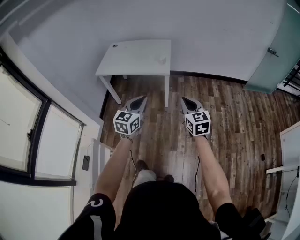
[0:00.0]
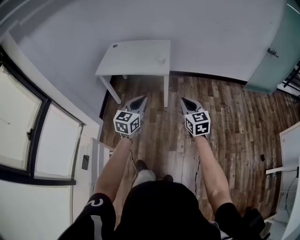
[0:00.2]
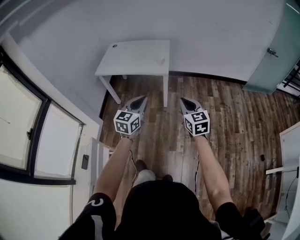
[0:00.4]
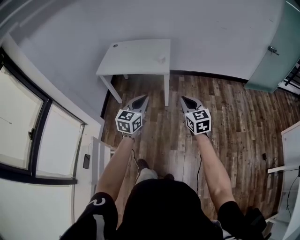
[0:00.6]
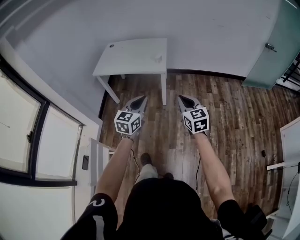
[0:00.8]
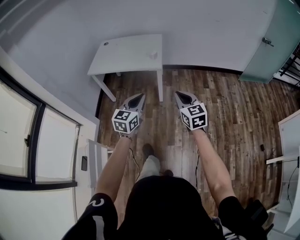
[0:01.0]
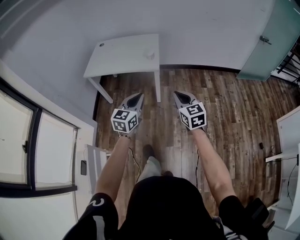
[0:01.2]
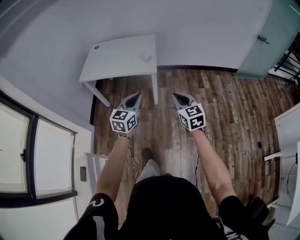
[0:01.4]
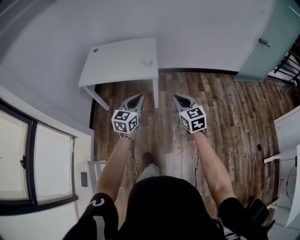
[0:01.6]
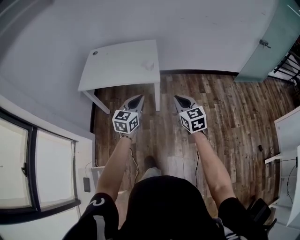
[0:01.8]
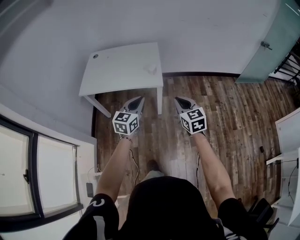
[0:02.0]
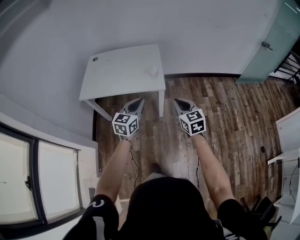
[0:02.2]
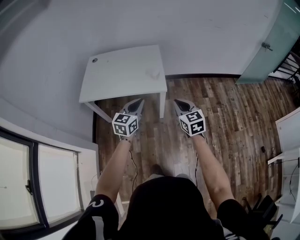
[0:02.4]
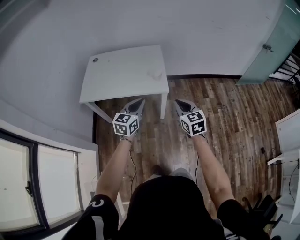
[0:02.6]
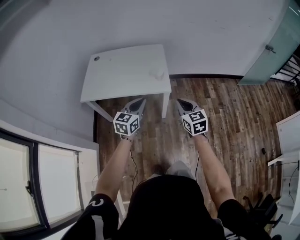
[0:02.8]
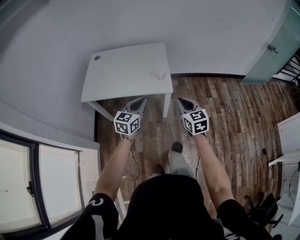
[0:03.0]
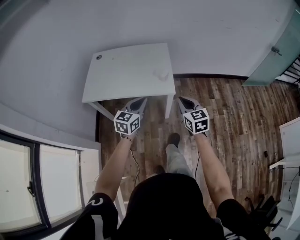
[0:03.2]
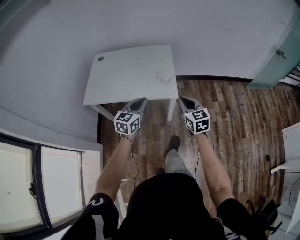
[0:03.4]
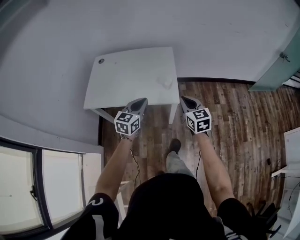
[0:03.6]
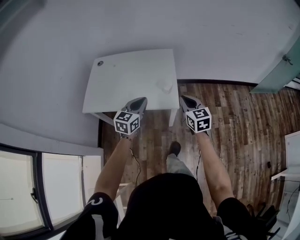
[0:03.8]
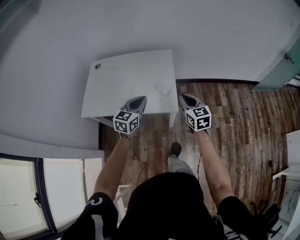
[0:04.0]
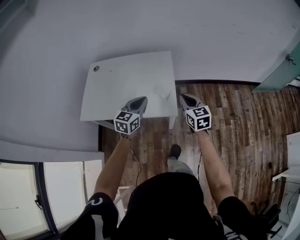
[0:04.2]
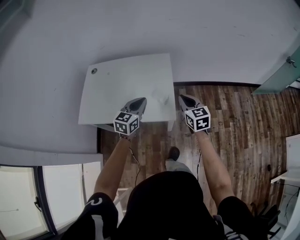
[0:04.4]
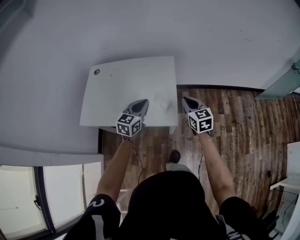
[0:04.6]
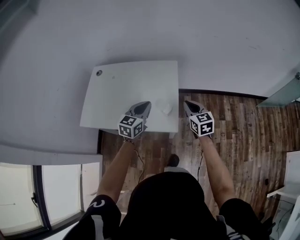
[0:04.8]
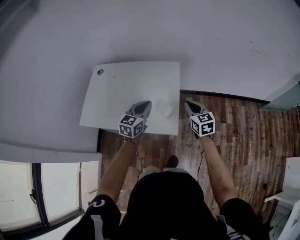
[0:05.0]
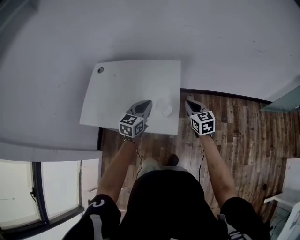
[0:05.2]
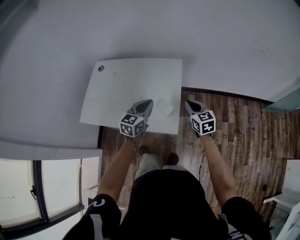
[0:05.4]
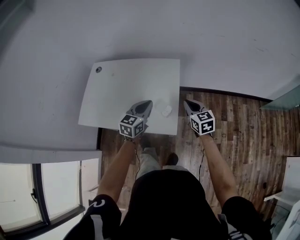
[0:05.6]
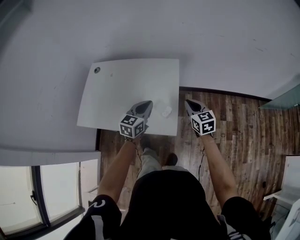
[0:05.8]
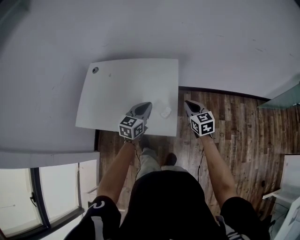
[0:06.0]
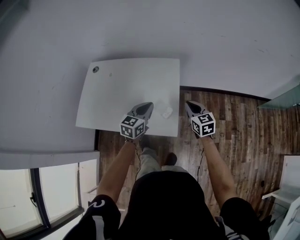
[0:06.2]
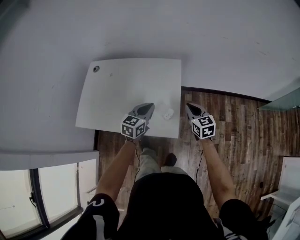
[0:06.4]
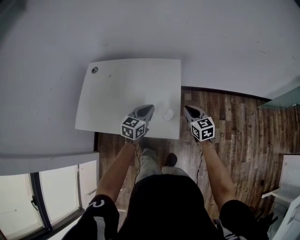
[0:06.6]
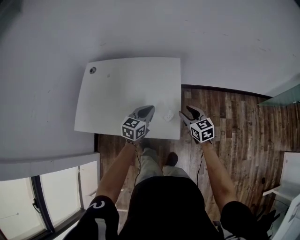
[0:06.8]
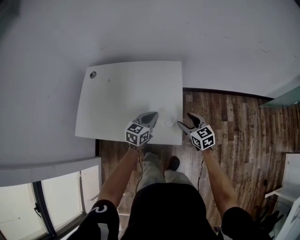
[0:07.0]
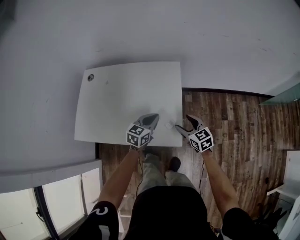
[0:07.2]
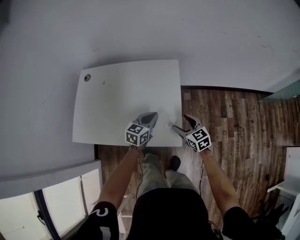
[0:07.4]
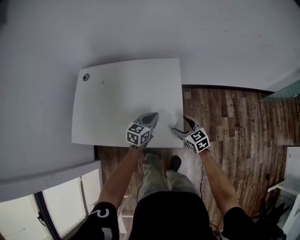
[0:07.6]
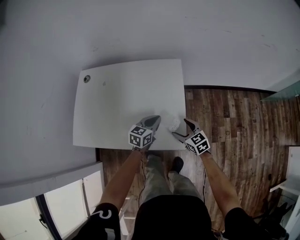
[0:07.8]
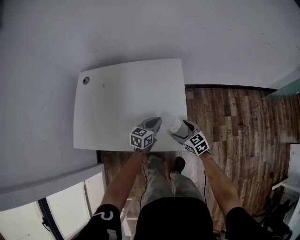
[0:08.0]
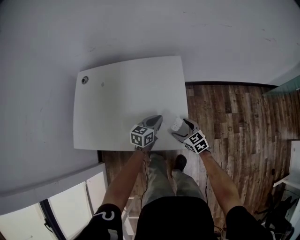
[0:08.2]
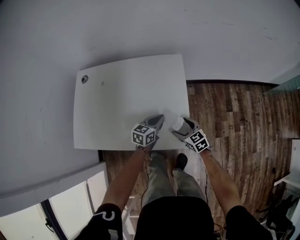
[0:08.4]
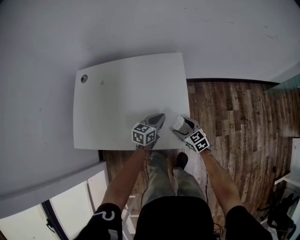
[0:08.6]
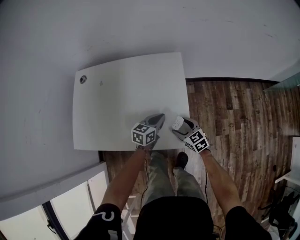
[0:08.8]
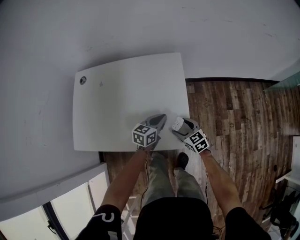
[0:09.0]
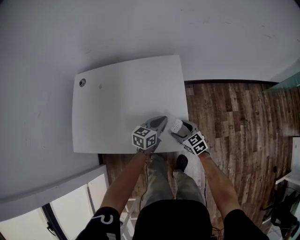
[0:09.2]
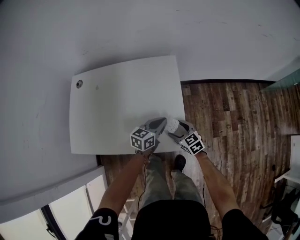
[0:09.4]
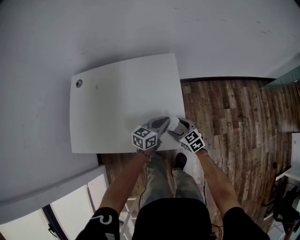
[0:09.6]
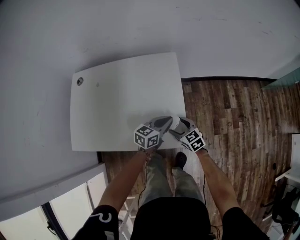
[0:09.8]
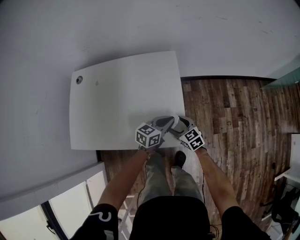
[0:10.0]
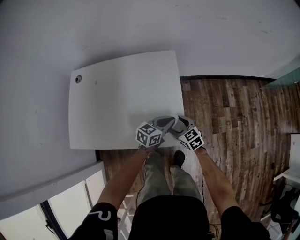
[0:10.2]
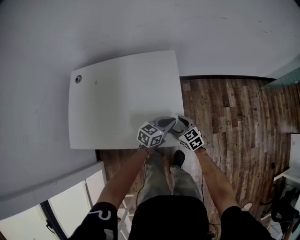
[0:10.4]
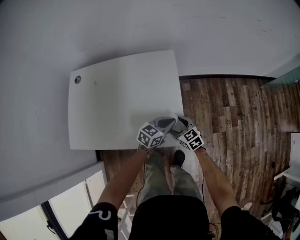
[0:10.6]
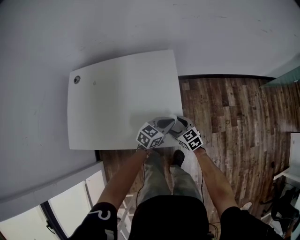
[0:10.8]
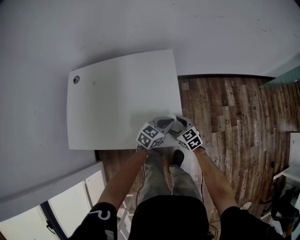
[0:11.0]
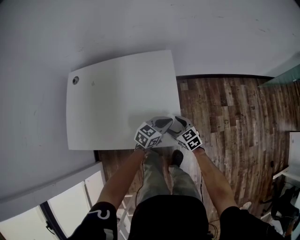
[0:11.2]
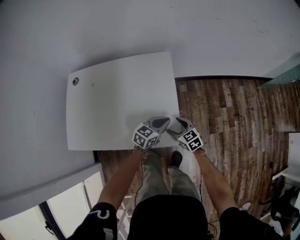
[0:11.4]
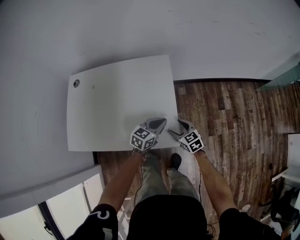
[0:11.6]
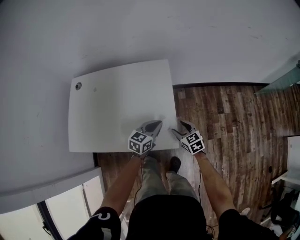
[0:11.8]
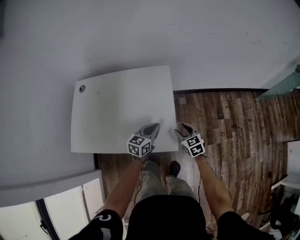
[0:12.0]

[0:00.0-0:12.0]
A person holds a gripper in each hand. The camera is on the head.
0:00.0 to 0:01.6: The two grippers go some 15 cm forward.
0:01.6 to 0:03.0: Both grippers move forward and to the left, some 20 cm.
0:03.0 to 0:04.4: Both grippers move forward, roughly 25 cm.
0:04.4 to 0:06.0: The left gripper shifts approximately 10 cm forward. Meanwhile the right gripper is displaced forward and downward by some 15 cm.
0:06.0 to 0:07.6: The left gripper heads downward and forward, covering some 15 cm. Meanwhile the right gripper heads downward and to the left, covering roughly 15 cm, and opens its fingers.
0:07.6 to 0:09.0: The grippers both shift downward by about 5 cm.
0:09.0 to 0:10.4: The left gripper heads to the right, covering some 10 cm.
0:10.4 to 0:12.0: The right gripper heads to the right and upward, covering approximately 10 cm, and closes its fingers; the left gripper moves upward, roughly 5 cm.

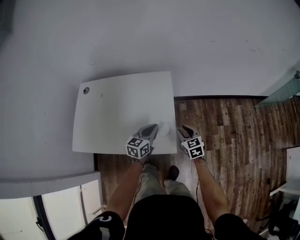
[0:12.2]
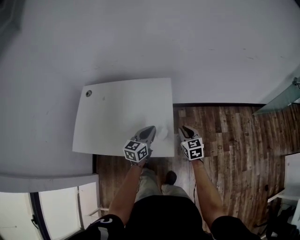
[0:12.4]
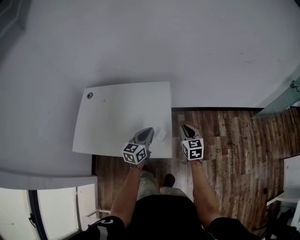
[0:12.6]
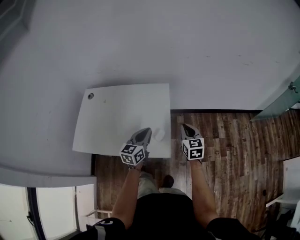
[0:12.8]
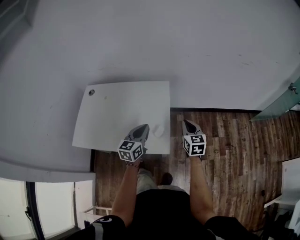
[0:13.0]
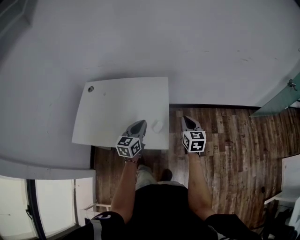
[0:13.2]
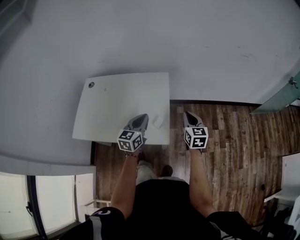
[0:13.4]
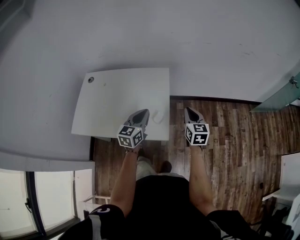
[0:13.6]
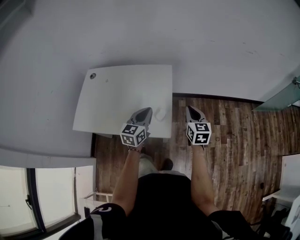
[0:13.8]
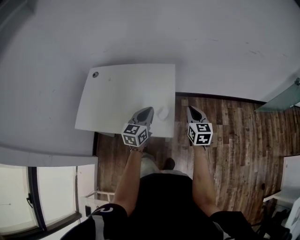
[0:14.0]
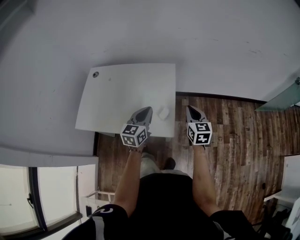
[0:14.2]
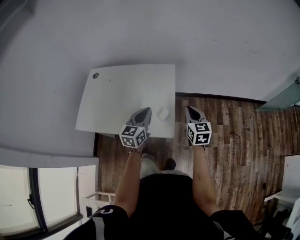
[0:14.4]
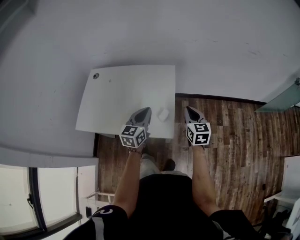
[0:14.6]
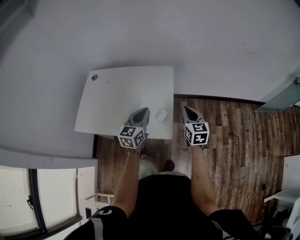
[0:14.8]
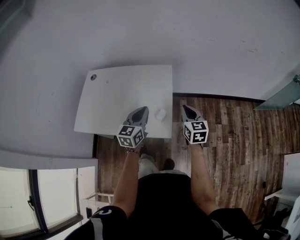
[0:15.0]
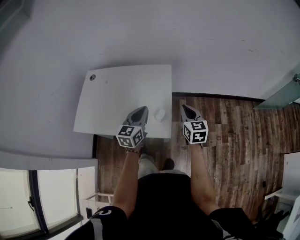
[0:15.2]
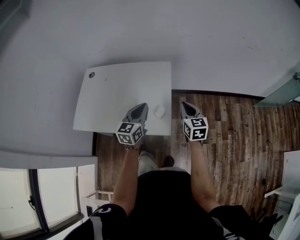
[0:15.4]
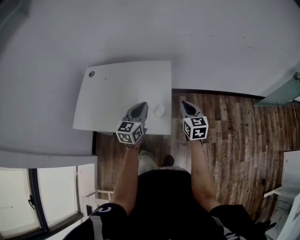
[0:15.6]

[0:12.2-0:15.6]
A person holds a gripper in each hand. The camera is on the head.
0:12.2 to 0:13.8: The right gripper heads upward and to the right, covering roughly 15 cm, while the left gripper travels upward and backward by some 10 cm.
0:13.8 to 0:15.6: The grippers stay close to where they were, moving slightly.

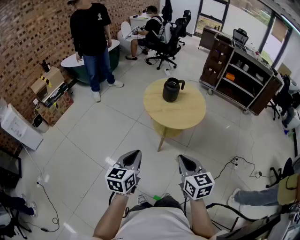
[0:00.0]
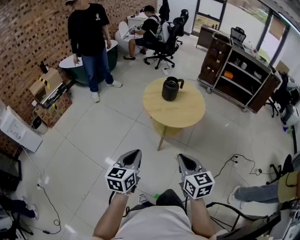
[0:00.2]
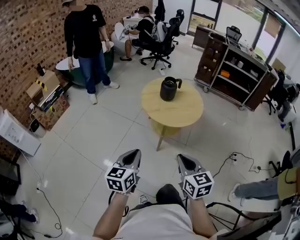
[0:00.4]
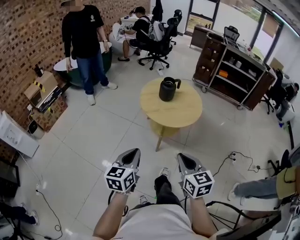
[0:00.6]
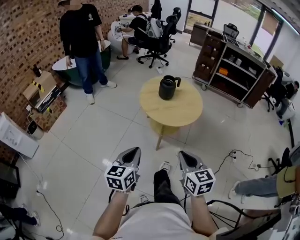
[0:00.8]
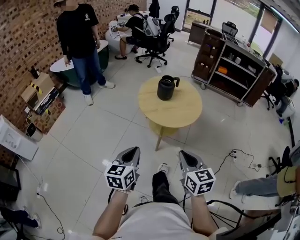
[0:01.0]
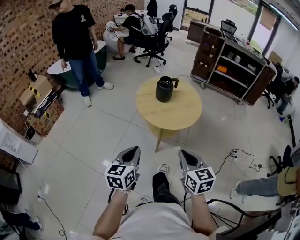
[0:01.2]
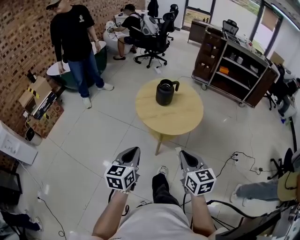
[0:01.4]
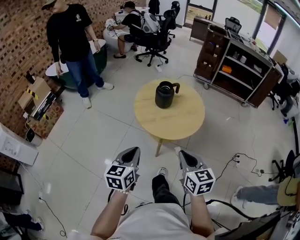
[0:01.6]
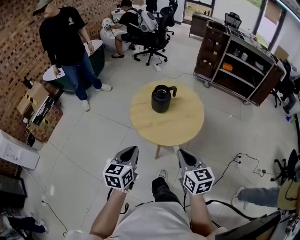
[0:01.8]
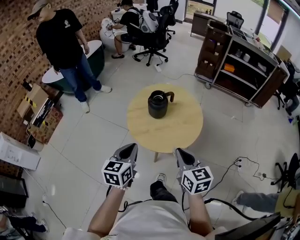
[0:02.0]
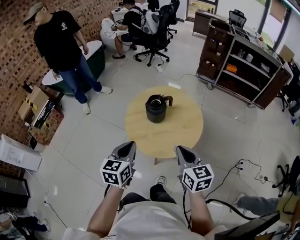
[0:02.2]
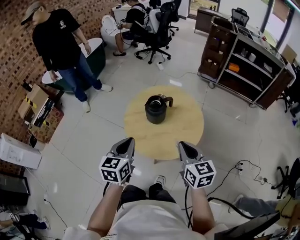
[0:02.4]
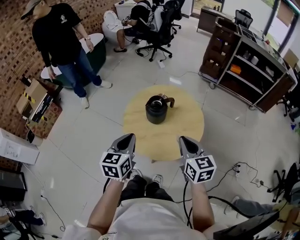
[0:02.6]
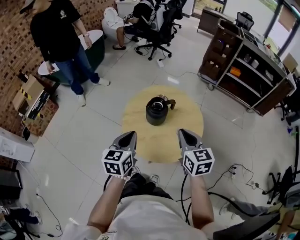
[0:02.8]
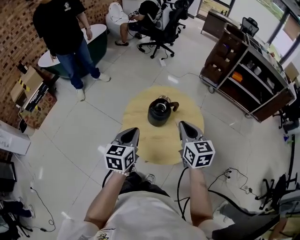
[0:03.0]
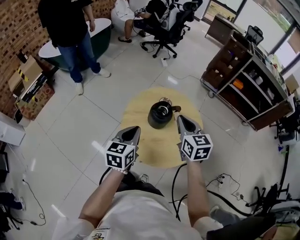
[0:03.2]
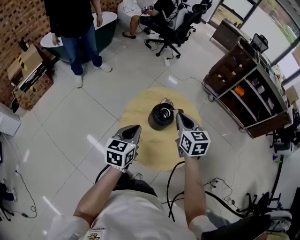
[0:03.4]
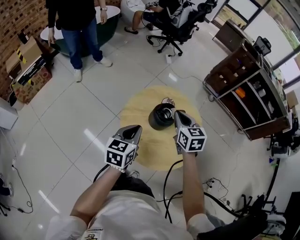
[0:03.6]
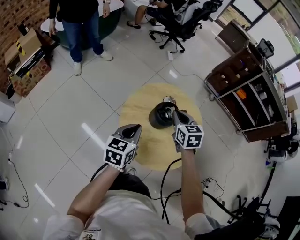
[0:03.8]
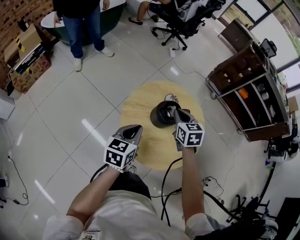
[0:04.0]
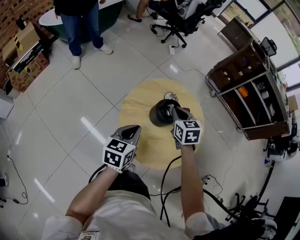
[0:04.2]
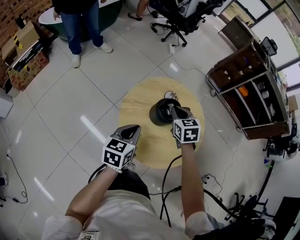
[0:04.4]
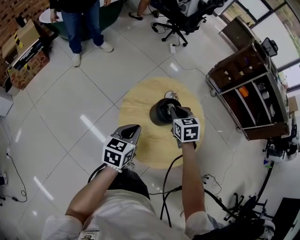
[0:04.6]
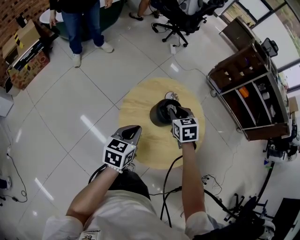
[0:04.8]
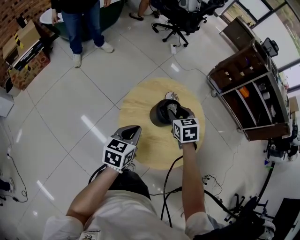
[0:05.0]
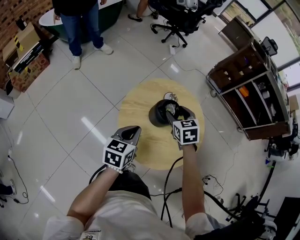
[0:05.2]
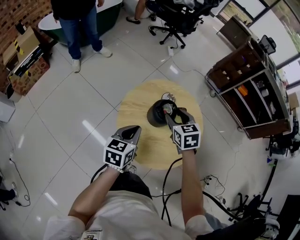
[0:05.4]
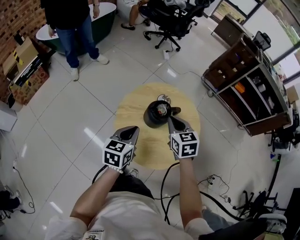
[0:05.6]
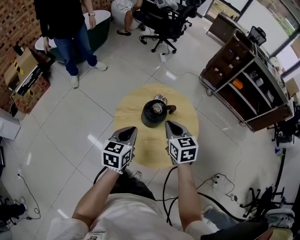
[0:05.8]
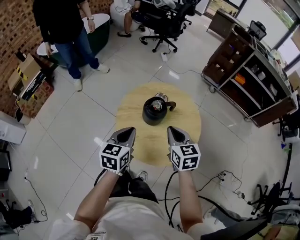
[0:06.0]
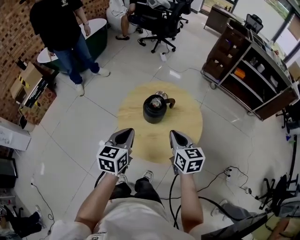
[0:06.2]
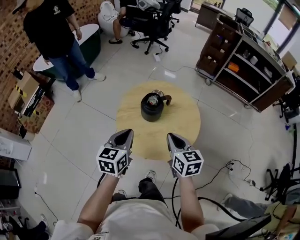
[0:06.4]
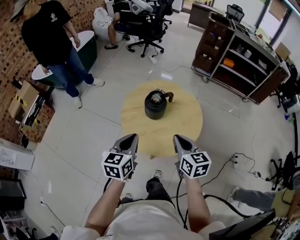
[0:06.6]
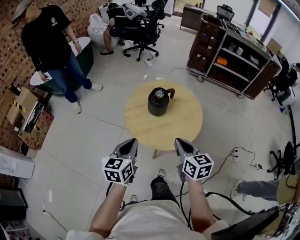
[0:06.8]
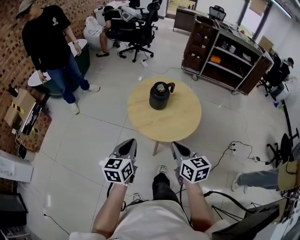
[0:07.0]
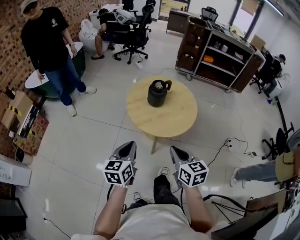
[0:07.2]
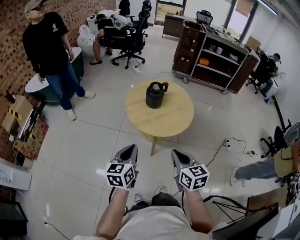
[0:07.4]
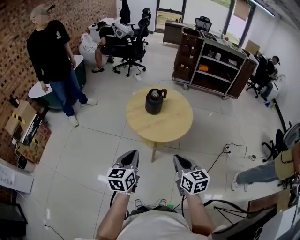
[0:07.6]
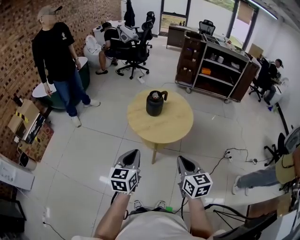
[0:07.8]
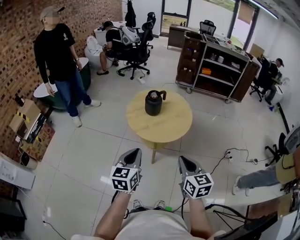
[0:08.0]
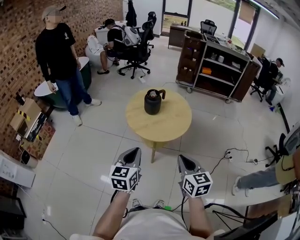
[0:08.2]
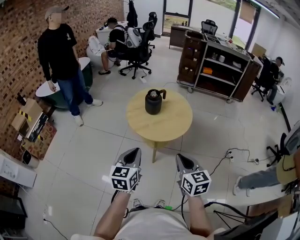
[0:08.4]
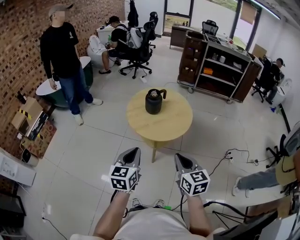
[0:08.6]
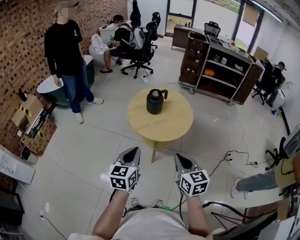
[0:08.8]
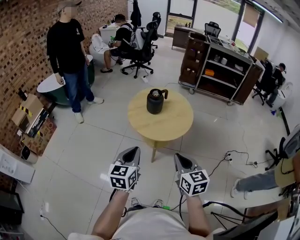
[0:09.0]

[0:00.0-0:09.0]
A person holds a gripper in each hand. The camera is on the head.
0:00.0 to 0:01.6: The two grippers go approximately 15 cm forward.
0:01.6 to 0:03.0: Both grippers move forward, some 30 cm.
0:03.0 to 0:04.4: The left gripper moves downward, about 10 cm, while the right gripper heads forward, downward and to the left, covering approximately 20 cm, and changes its angle by some 20 degrees.
0:04.4 to 0:06.0: The left gripper heads upward, covering approximately 5 cm. The right gripper moves backward and upward, some 15 cm, and opens, then closes once more.
0:06.0 to 0:07.6: Both grippers move backward, some 30 cm. The right gripper changes its angle by roughly 20 degrees.
0:07.6 to 0:09.0: The left gripper moves approximately 5 cm.
